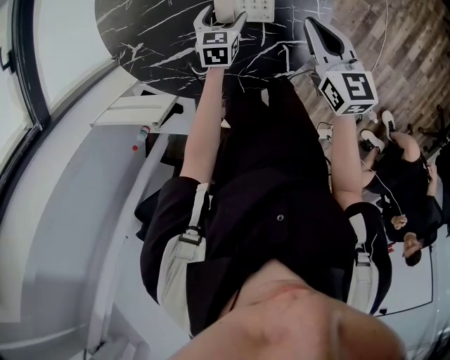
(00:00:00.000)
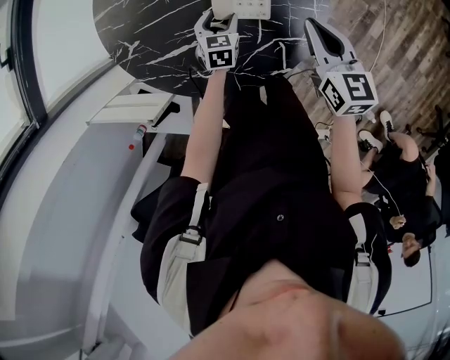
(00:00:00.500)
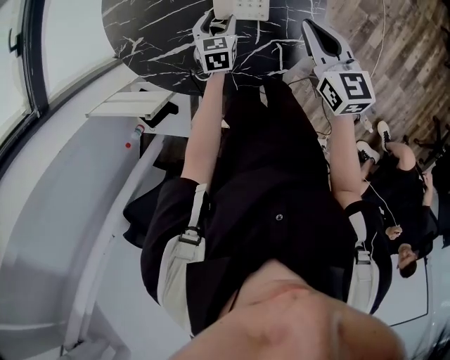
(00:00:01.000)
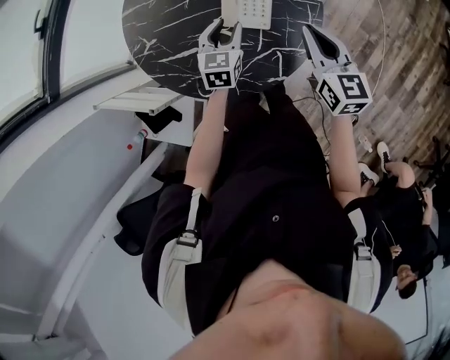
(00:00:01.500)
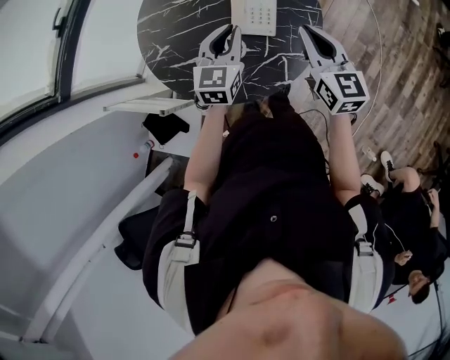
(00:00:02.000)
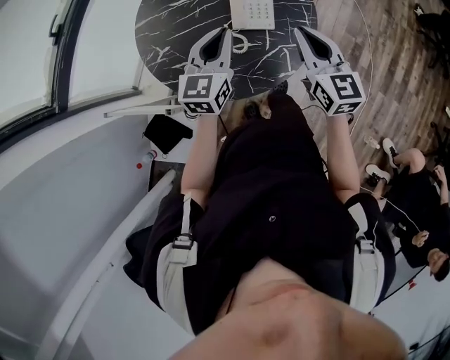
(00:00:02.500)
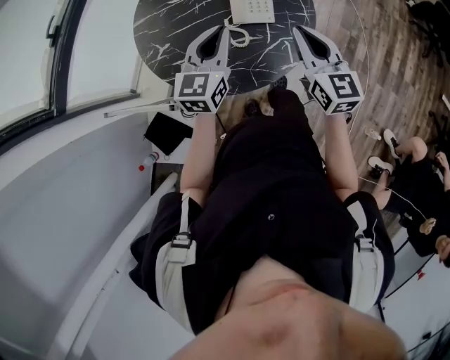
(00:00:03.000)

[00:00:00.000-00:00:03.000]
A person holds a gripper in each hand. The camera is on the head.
00:00:00.000 to 00:00:01.500: The right gripper shifts roughly 5 cm upward. The left gripper goes approximately 15 cm upward, and closes.
00:00:01.500 to 00:00:03.000: The right gripper goes about 20 cm backward, to the left and upward. The left gripper is displaced upward and backward by about 20 cm, rotates roughly 30 degrees, and closes up.

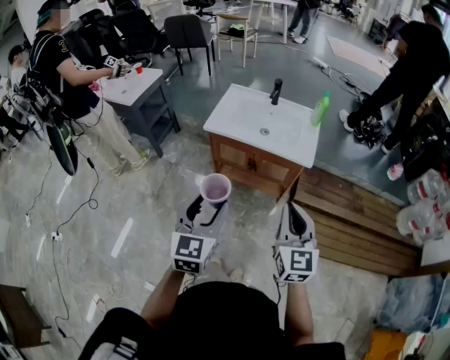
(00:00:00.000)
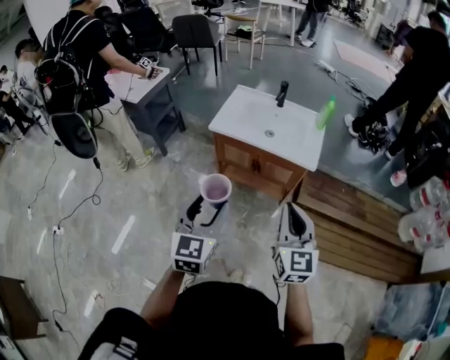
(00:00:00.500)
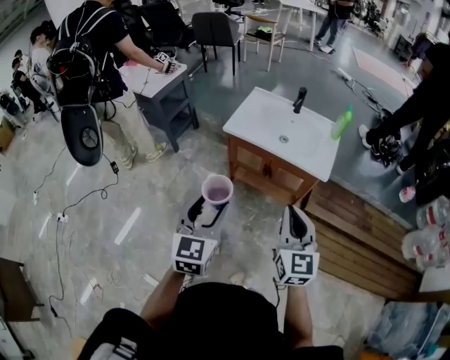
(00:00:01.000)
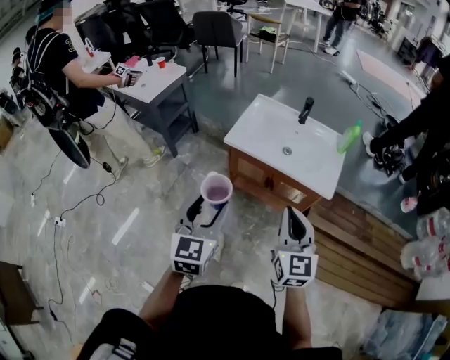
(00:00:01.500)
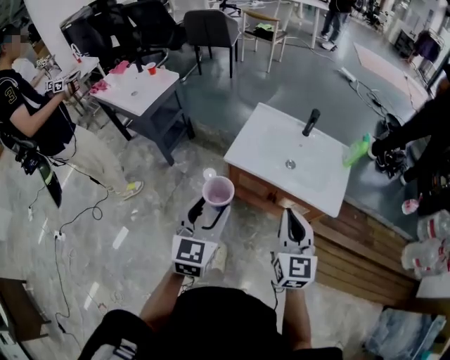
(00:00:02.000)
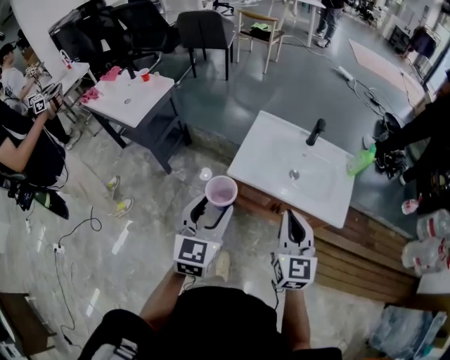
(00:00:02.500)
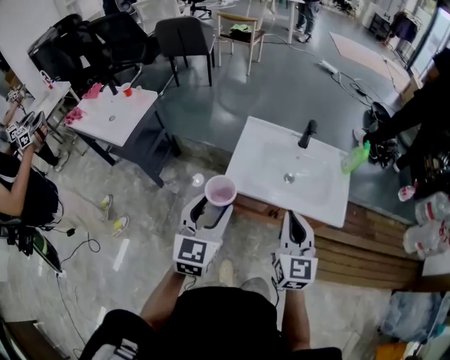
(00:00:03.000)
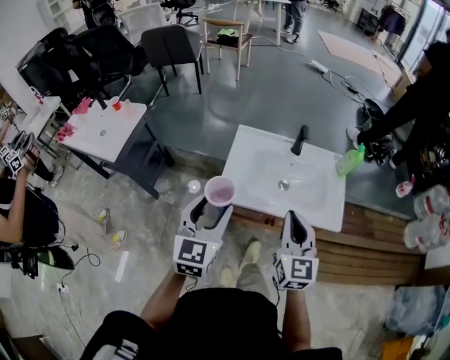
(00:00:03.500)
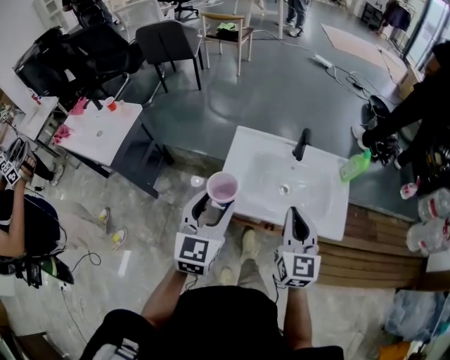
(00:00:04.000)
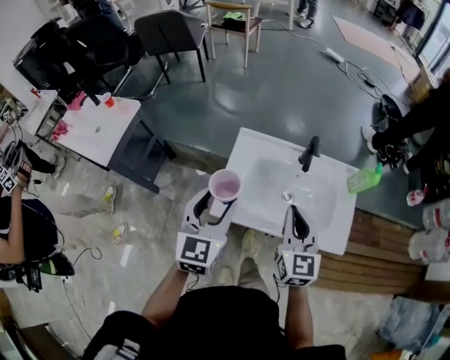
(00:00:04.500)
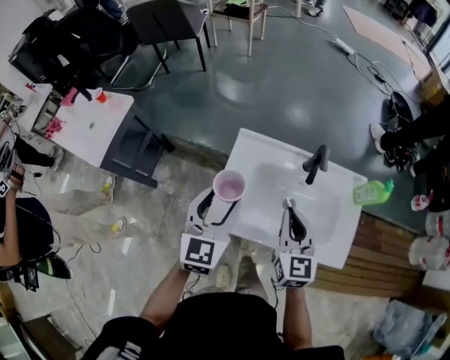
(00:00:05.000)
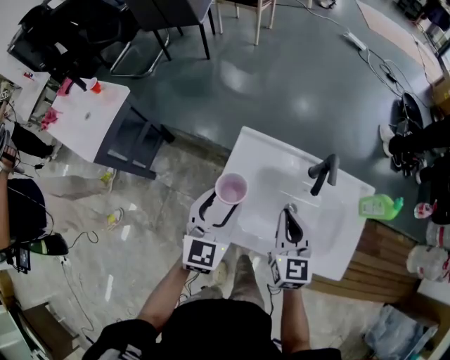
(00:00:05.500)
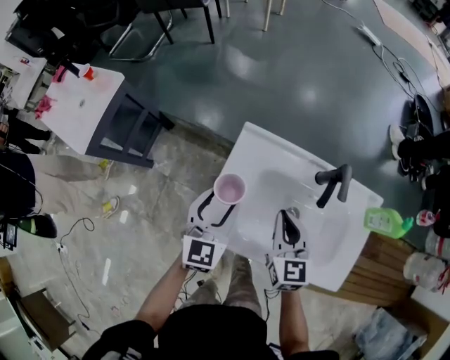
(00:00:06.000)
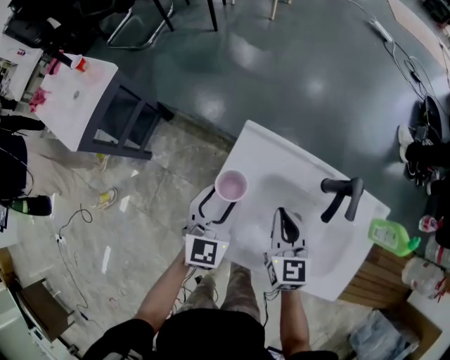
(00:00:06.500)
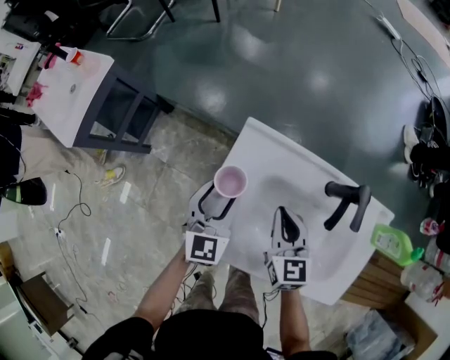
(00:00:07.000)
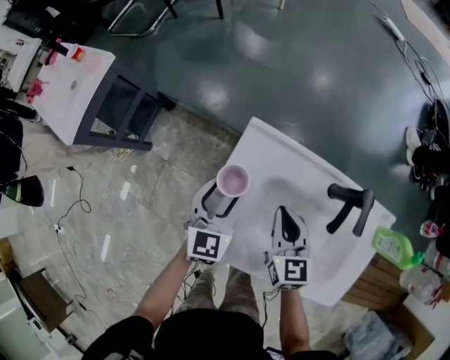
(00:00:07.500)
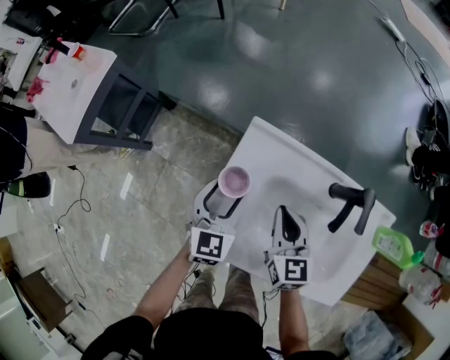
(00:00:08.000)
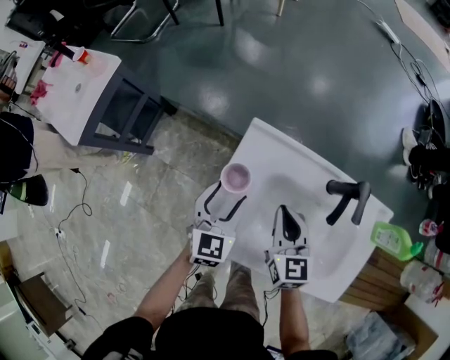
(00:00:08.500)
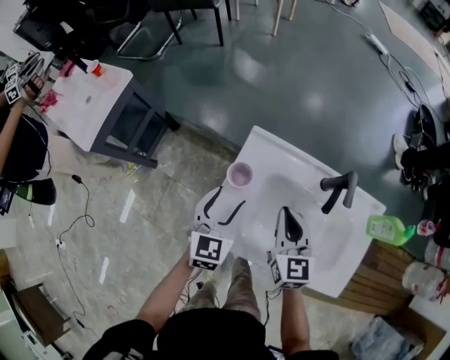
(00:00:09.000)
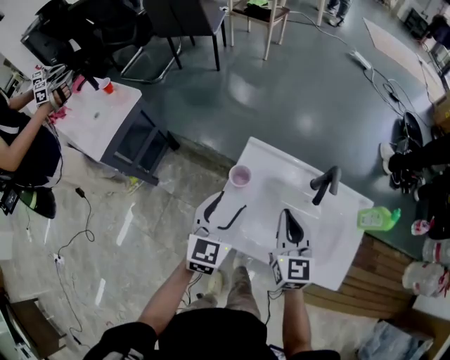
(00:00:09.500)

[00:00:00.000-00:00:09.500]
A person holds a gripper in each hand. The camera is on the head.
00:00:00.000 to 00:00:02.000: Both grippers move forward and to the left, roughly 25 cm.
00:00:02.000 to 00:00:04.000: The two grippers go roughly 25 cm forward.
00:00:04.000 to 00:00:05.500: The grippers both shift forward and downward by approximately 20 cm.
00:00:05.500 to 00:00:07.500: Both grippers travel together downward and forward, some 20 cm.
00:00:07.500 to 00:00:09.500: Both grippers move upward and backward, roughly 20 cm.

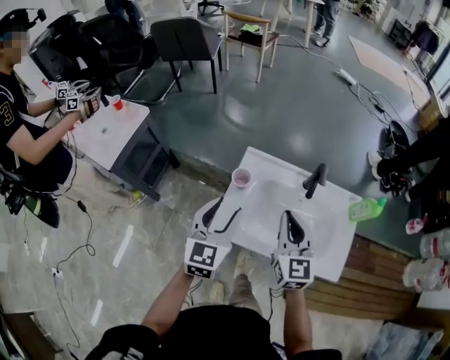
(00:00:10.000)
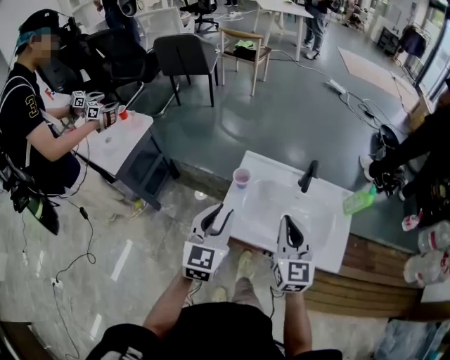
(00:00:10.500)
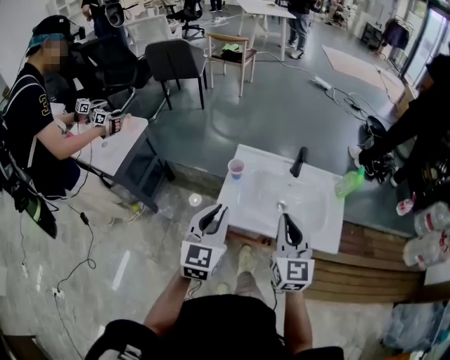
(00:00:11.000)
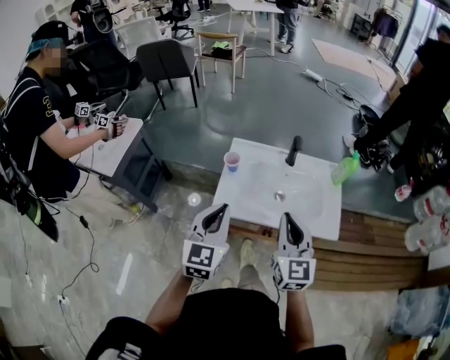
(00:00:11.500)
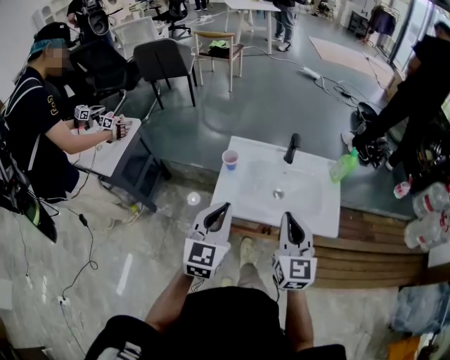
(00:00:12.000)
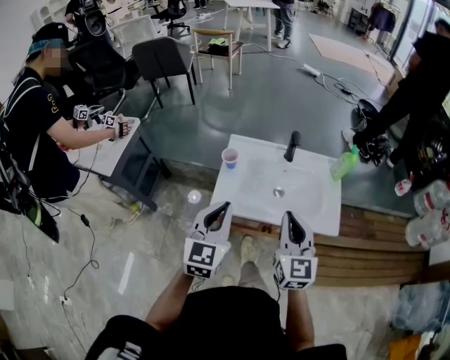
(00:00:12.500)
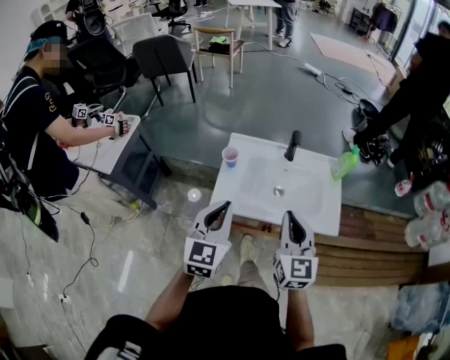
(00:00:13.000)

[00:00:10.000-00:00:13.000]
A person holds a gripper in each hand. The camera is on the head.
00:00:10.000 to 00:00:11.500: The grippers both shift backward by approximately 20 cm. The left gripper closes up.
00:00:11.500 to 00:00:13.000: Both grippers stay about where they are.

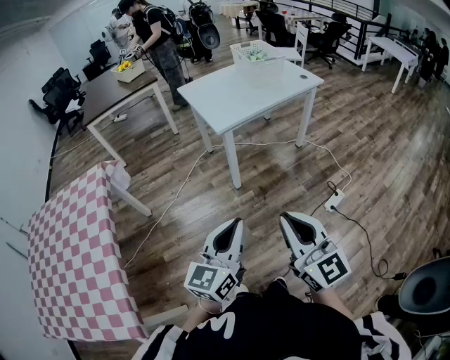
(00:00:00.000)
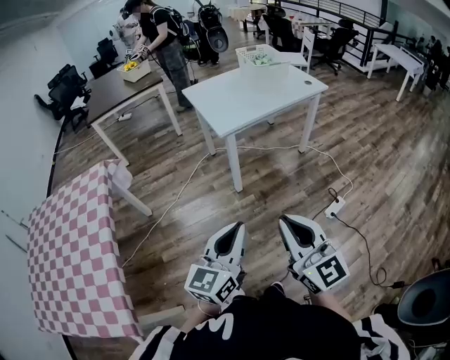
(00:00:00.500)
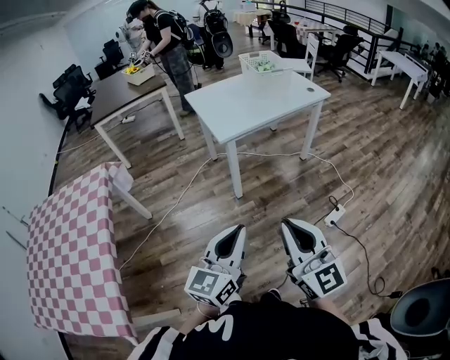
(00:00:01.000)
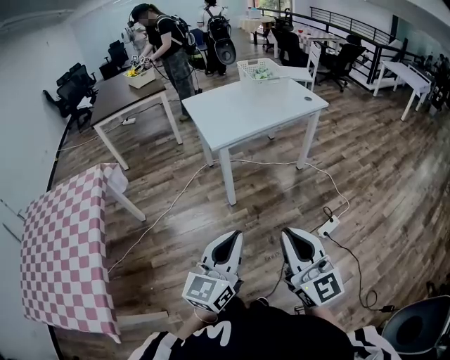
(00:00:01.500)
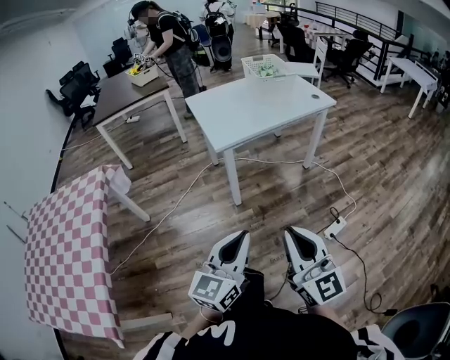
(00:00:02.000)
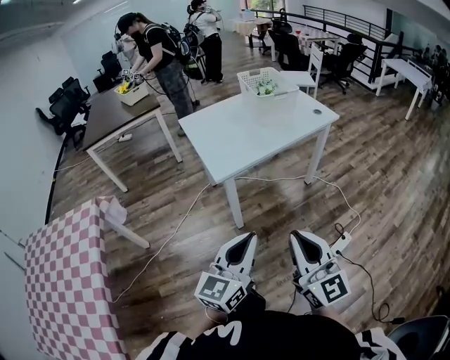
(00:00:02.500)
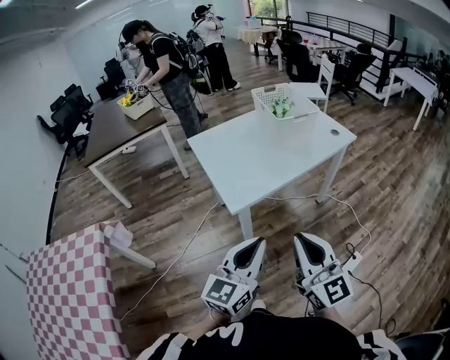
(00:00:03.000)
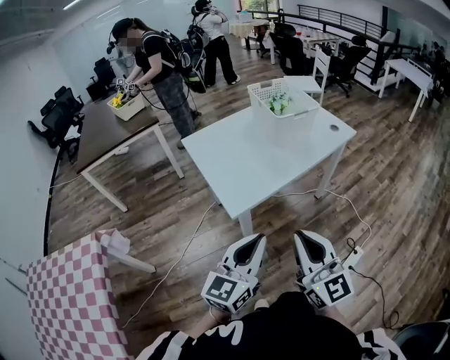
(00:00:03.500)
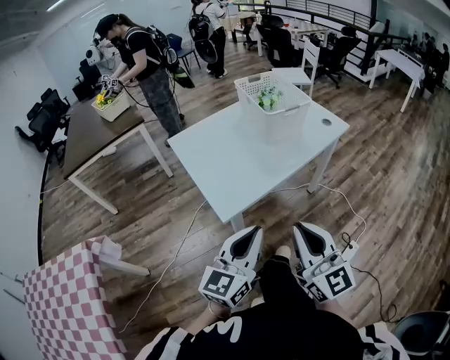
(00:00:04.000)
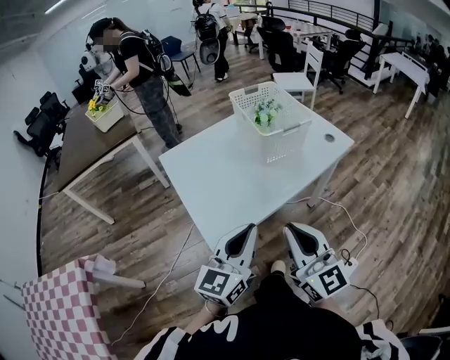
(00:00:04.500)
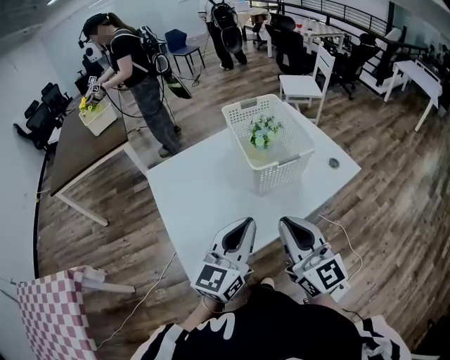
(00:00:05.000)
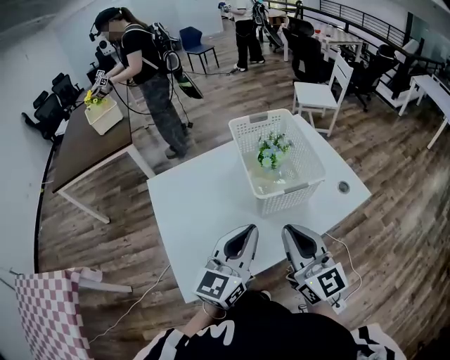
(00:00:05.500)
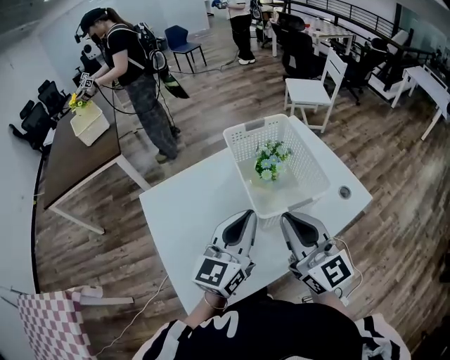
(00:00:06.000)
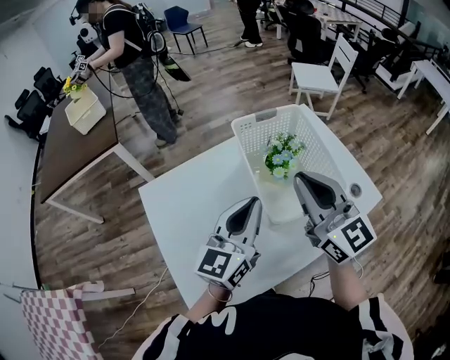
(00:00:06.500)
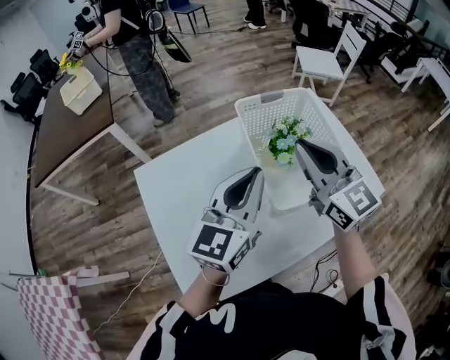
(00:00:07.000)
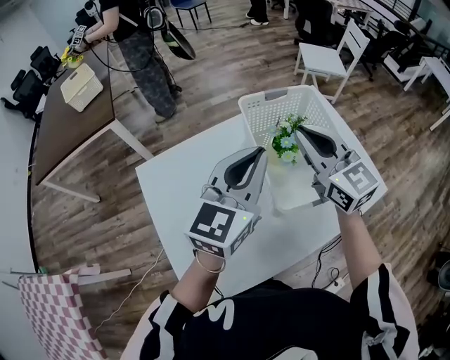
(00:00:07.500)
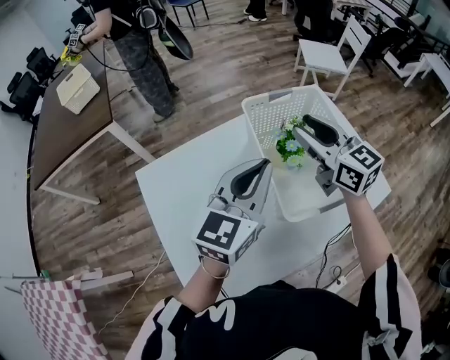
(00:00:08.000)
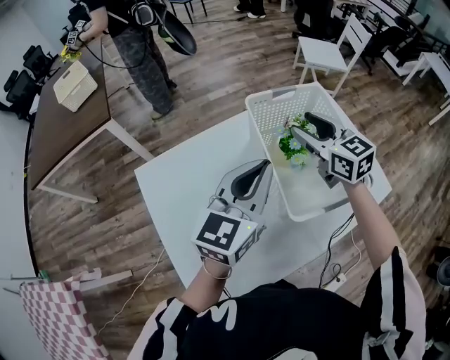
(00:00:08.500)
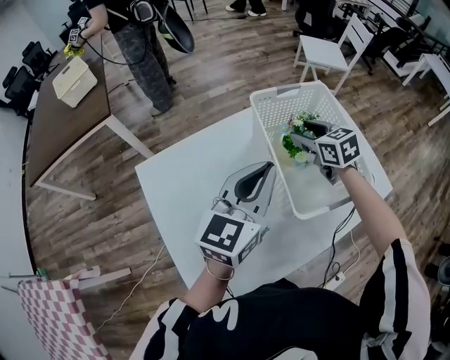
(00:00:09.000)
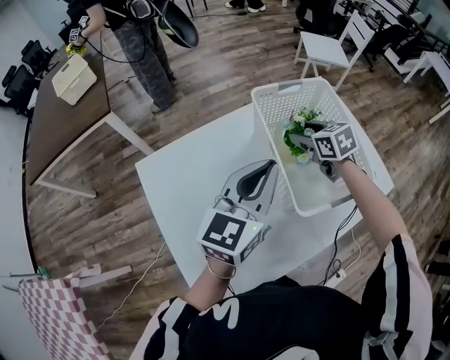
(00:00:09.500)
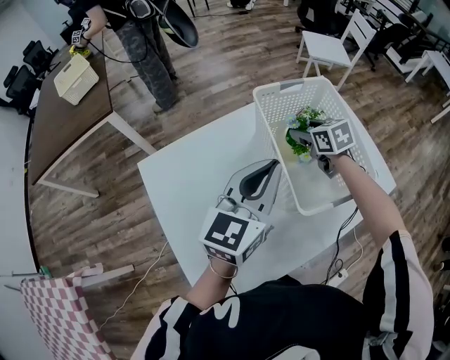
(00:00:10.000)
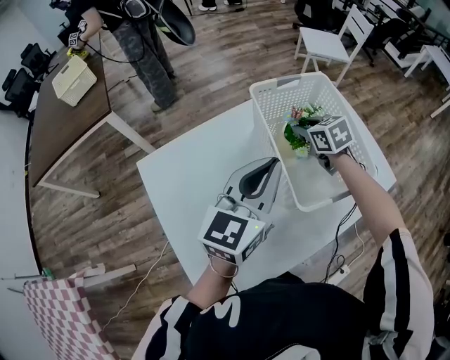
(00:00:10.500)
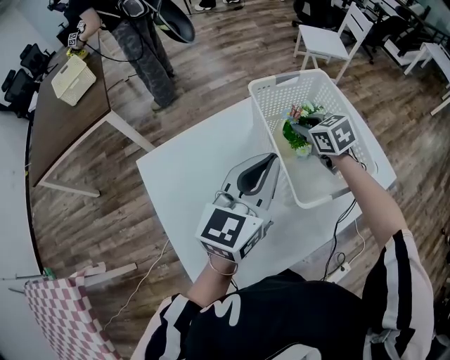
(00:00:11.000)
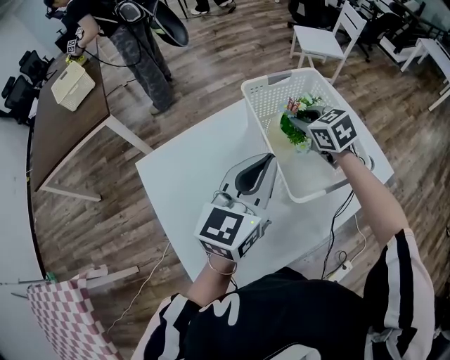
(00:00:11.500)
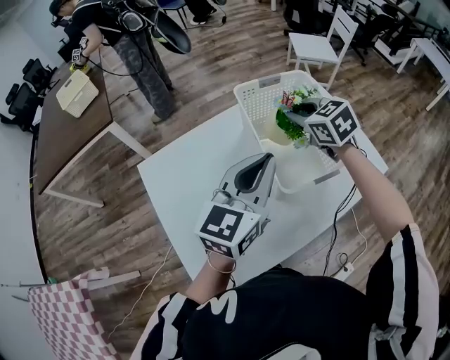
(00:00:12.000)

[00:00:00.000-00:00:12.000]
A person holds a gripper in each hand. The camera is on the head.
00:00:00.000 to 00:00:02.000: Both grippers move to the right and forward, about 10 cm.
00:00:02.000 to 00:00:04.000: Both grippers travel together forward, roughly 35 cm.
00:00:04.000 to 00:00:06.000: The two grippers travel together, forward, approximately 40 cm.
00:00:06.000 to 00:00:08.000: The left gripper heads forward, covering approximately 10 cm; the right gripper travels forward by approximately 25 cm, and opens up.
00:00:08.000 to 00:00:10.000: The right gripper moves downward, about 20 cm, and points its fingers about 40 degrees further downward.
00:00:10.000 to 00:00:12.000: The left gripper moves approximately 5 cm. Meanwhile the right gripper goes about 10 cm upward, and closes.
